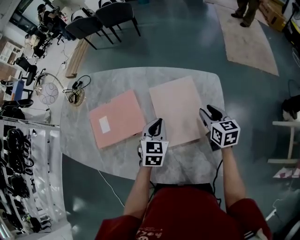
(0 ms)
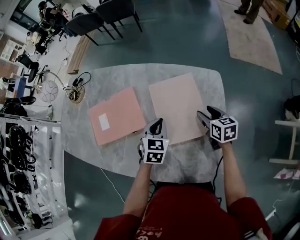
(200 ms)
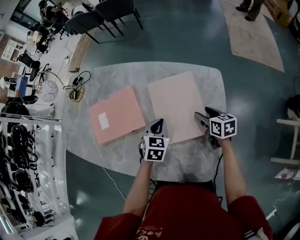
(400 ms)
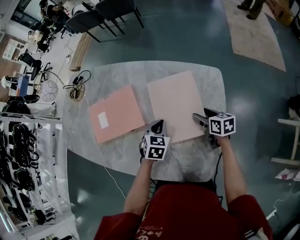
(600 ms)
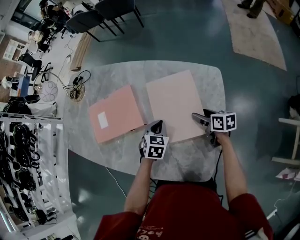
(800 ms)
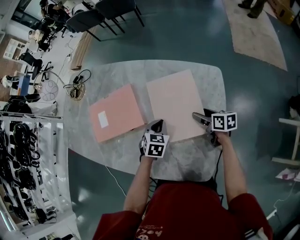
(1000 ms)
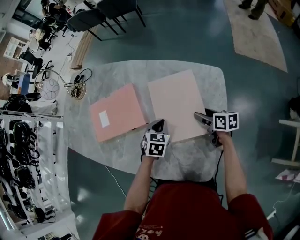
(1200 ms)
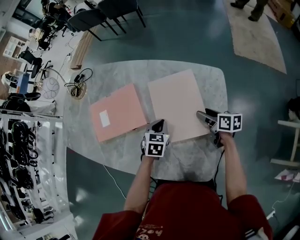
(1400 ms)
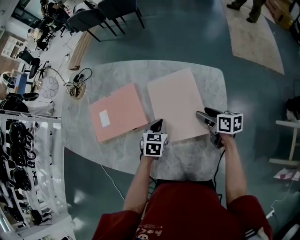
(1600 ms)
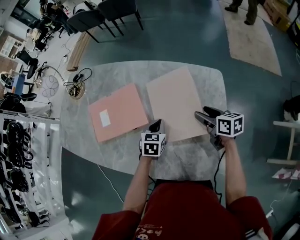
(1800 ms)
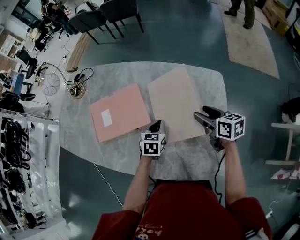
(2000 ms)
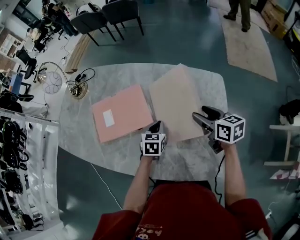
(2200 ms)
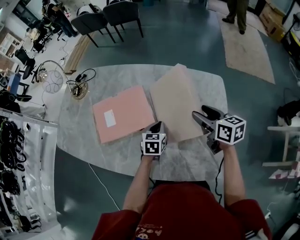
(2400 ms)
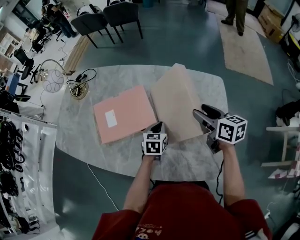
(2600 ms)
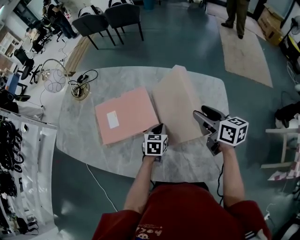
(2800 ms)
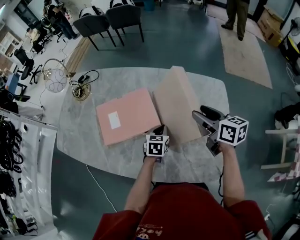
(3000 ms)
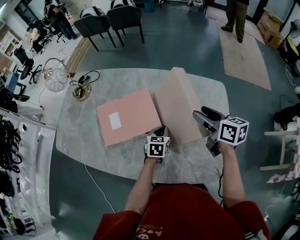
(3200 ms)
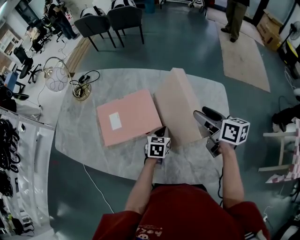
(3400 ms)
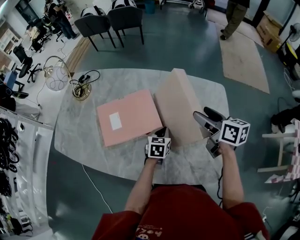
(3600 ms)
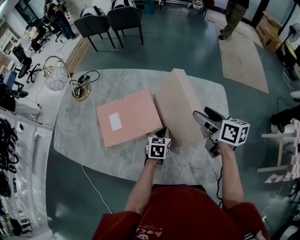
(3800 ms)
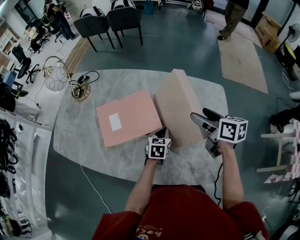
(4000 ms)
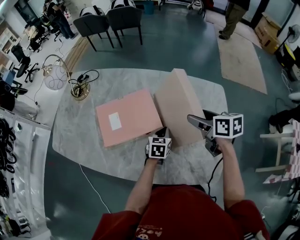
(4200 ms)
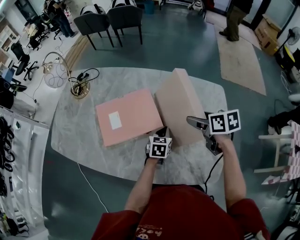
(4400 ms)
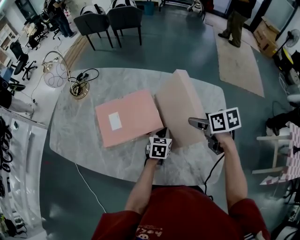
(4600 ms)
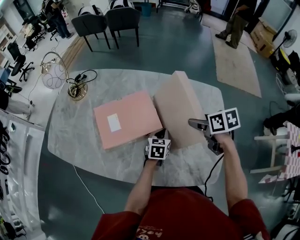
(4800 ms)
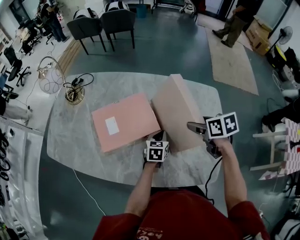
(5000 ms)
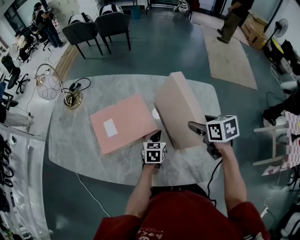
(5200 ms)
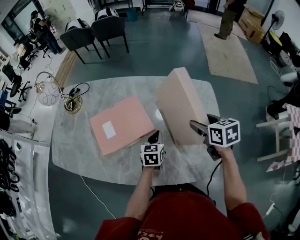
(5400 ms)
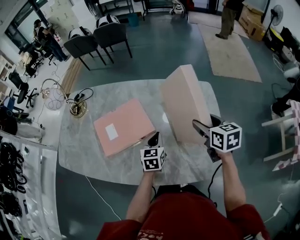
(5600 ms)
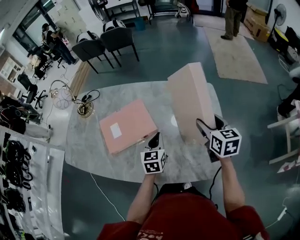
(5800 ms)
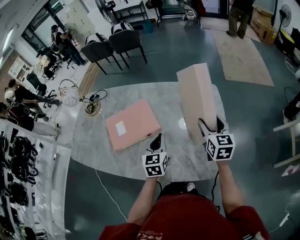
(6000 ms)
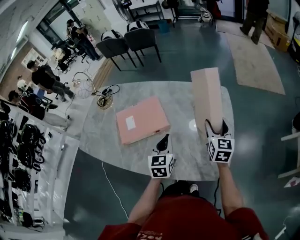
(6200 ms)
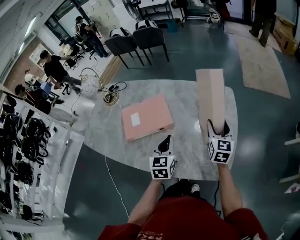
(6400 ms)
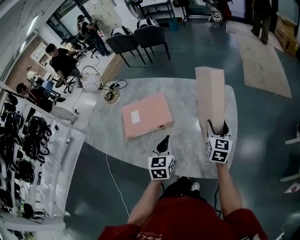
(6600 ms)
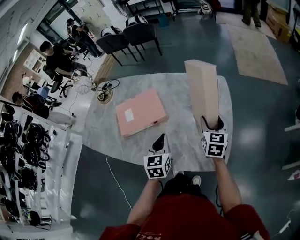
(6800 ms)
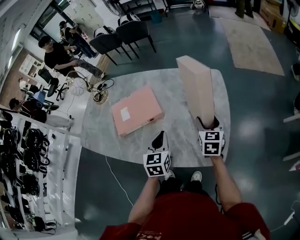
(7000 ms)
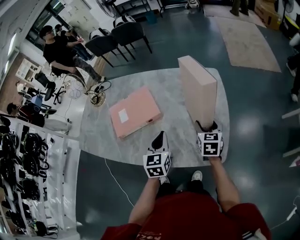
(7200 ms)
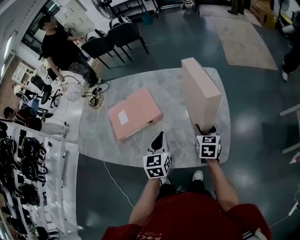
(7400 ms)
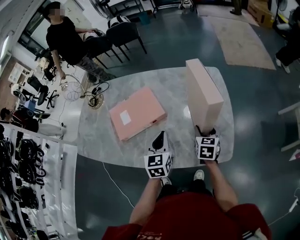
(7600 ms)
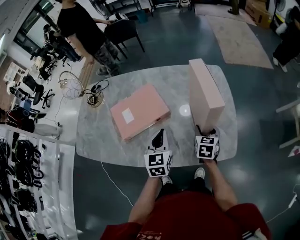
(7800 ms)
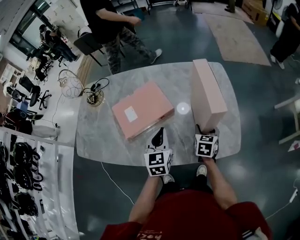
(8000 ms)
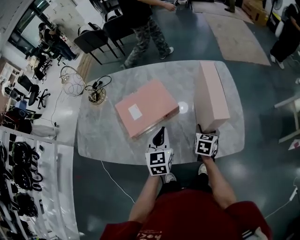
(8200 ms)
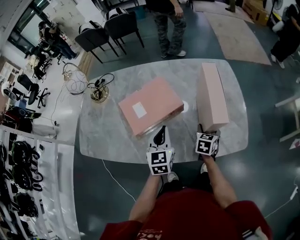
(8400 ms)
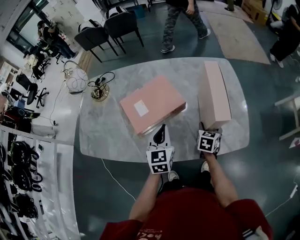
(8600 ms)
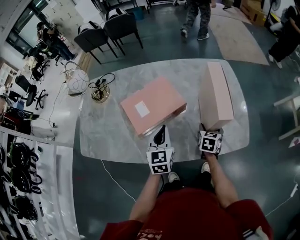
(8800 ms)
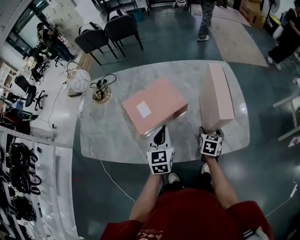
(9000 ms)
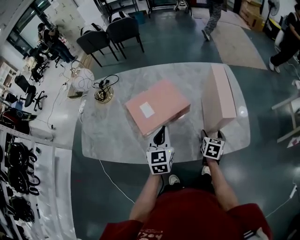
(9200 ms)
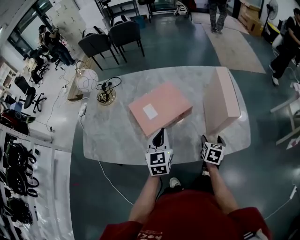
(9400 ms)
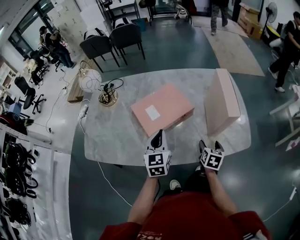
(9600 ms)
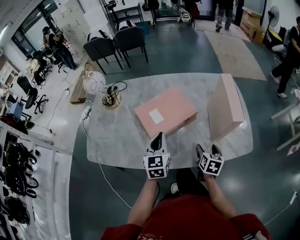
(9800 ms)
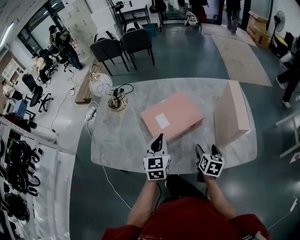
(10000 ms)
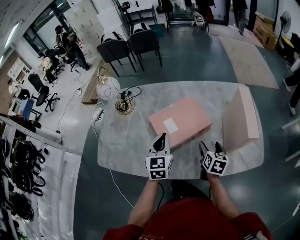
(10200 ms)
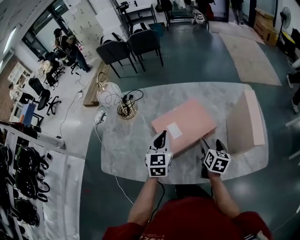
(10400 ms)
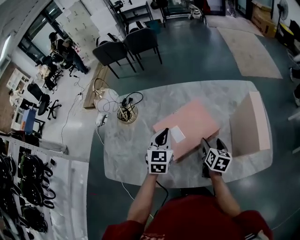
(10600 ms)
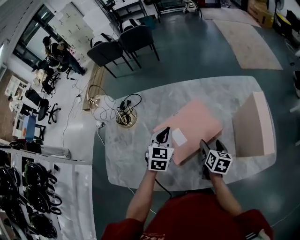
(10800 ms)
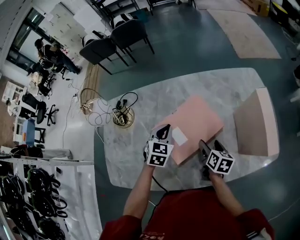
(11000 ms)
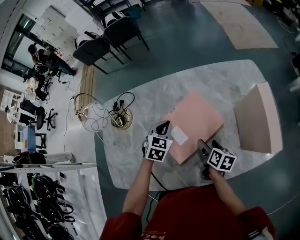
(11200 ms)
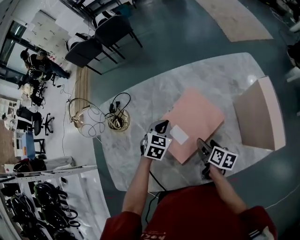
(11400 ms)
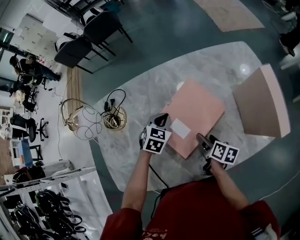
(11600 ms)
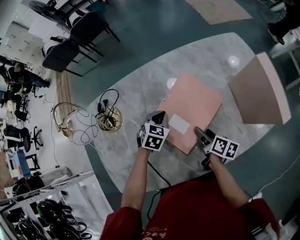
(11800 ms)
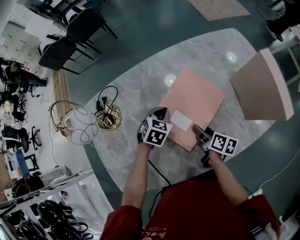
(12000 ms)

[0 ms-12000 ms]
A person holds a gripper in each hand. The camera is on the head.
0 ms to 1600 ms: The left gripper travels downward by about 10 cm, while the right gripper is displaced downward by approximately 5 cm, and turns by approximately 30 degrees.
1600 ms to 3000 ms: The right gripper travels upward and to the left by about 20 cm. The left gripper shifts about 5 cm to the left.
3000 ms to 4400 ms: The right gripper changes place by roughly 5 cm, and changes its angle by approximately 20 degrees.
4400 ms to 6000 ms: The right gripper goes about 15 cm to the right, backward and upward, and swivels roughly 40 degrees, while the left gripper goes about 20 cm upward and backward, and turns by about 20 degrees.
6000 ms to 7600 ms: The left gripper travels backward by approximately 5 cm, while the right gripper moves downward and backward, roughly 15 cm.
7600 ms to 9000 ms: The left gripper shifts approximately 15 cm to the left. The right gripper shifts some 15 cm to the left, backward and downward.
9000 ms to 10400 ms: The left gripper moves to the left, some 15 cm; the right gripper is displaced to the left and upward by roughly 20 cm, and turns by roughly 20 degrees.
10400 ms to 12000 ms: The left gripper travels downward and forward by roughly 25 cm, and angles its fingers downward, by roughly 30 degrees. The right gripper moves to the left and downward, approximately 15 cm, and rolls clockwise, seen from behind, by some 40 degrees.

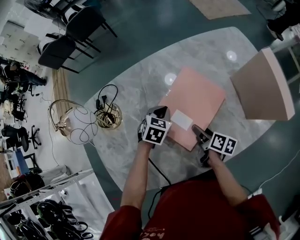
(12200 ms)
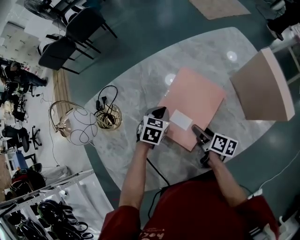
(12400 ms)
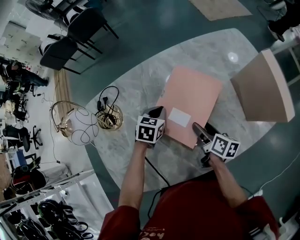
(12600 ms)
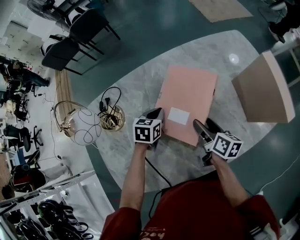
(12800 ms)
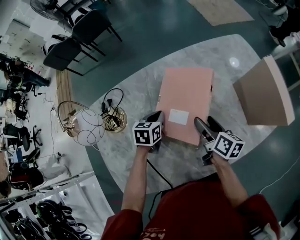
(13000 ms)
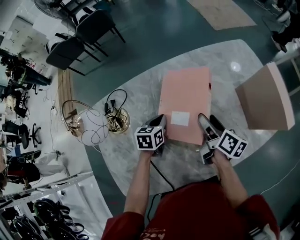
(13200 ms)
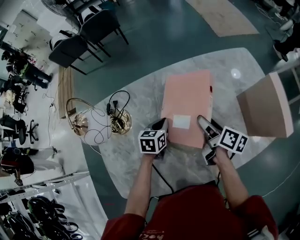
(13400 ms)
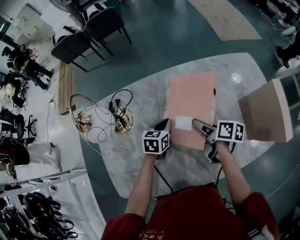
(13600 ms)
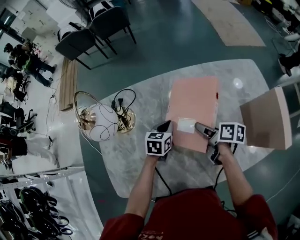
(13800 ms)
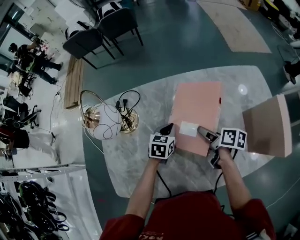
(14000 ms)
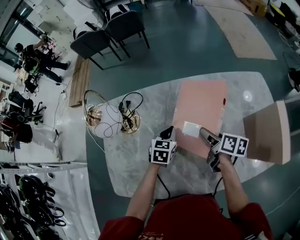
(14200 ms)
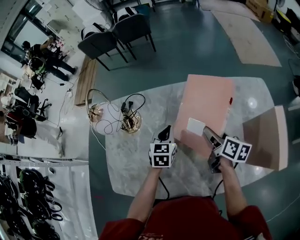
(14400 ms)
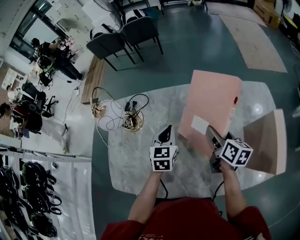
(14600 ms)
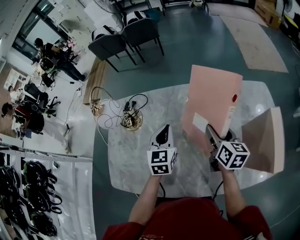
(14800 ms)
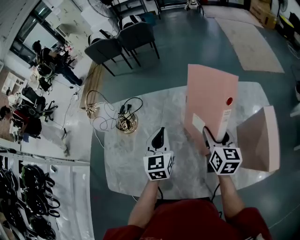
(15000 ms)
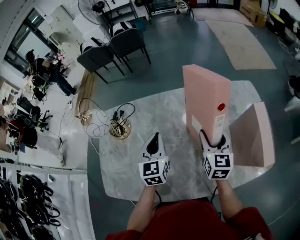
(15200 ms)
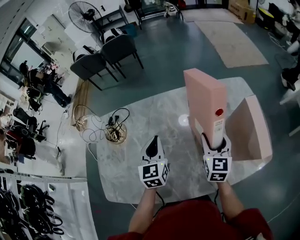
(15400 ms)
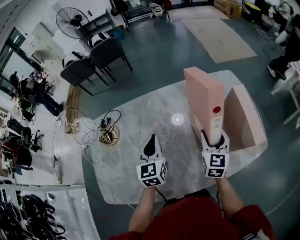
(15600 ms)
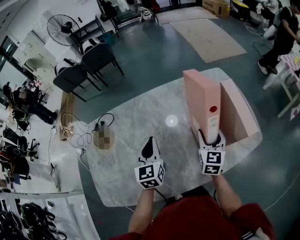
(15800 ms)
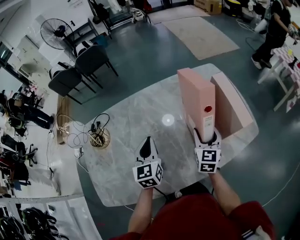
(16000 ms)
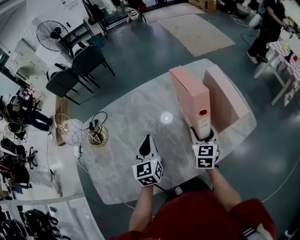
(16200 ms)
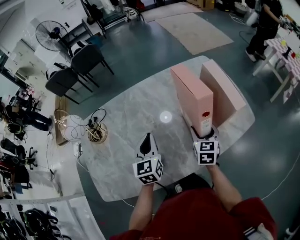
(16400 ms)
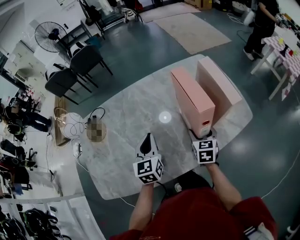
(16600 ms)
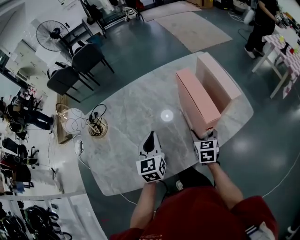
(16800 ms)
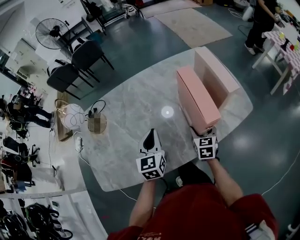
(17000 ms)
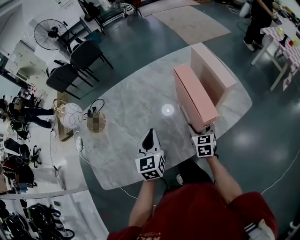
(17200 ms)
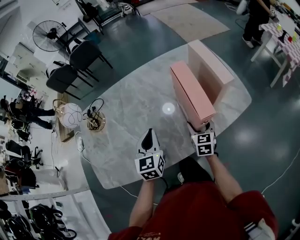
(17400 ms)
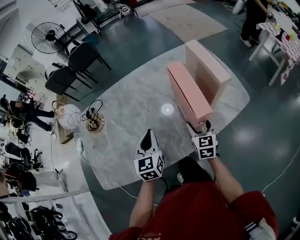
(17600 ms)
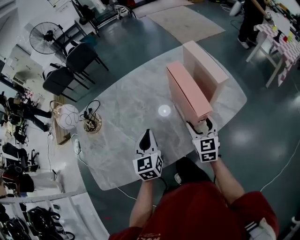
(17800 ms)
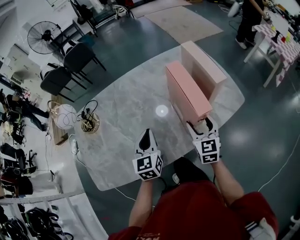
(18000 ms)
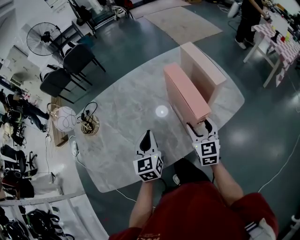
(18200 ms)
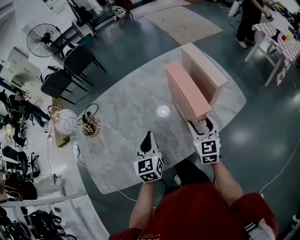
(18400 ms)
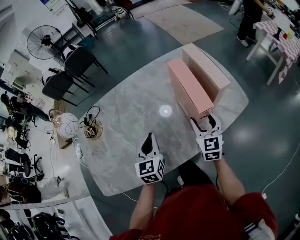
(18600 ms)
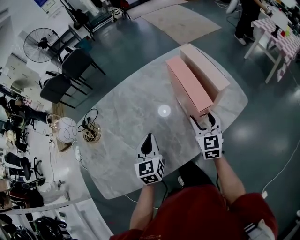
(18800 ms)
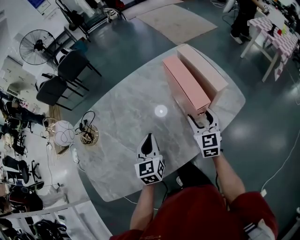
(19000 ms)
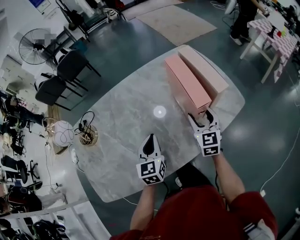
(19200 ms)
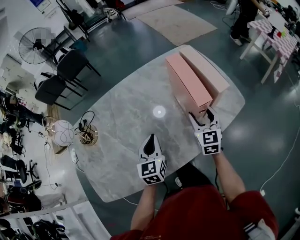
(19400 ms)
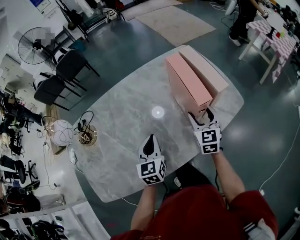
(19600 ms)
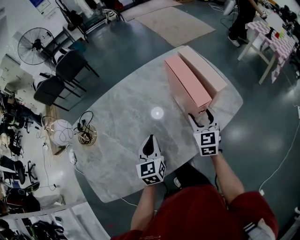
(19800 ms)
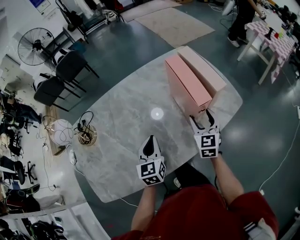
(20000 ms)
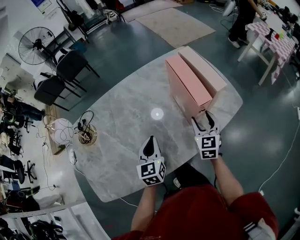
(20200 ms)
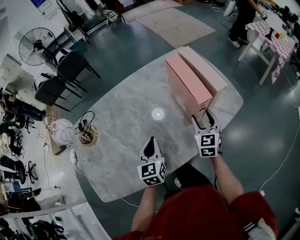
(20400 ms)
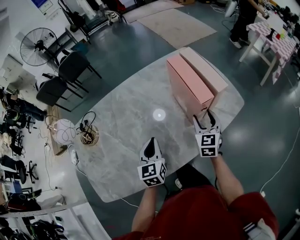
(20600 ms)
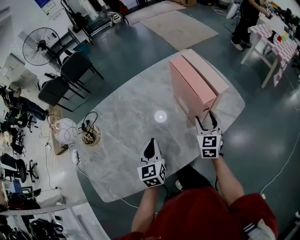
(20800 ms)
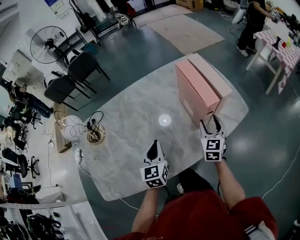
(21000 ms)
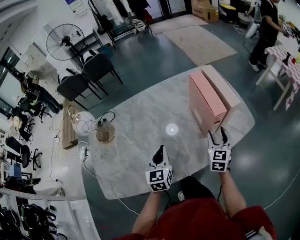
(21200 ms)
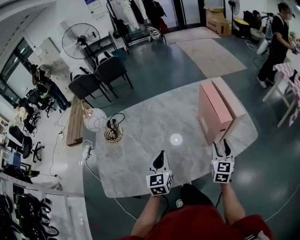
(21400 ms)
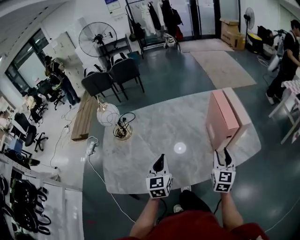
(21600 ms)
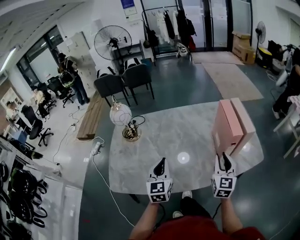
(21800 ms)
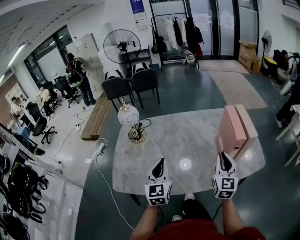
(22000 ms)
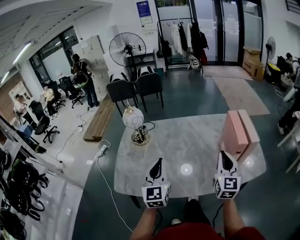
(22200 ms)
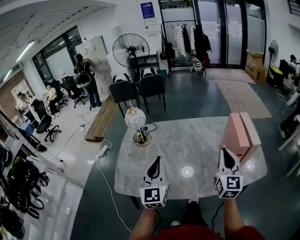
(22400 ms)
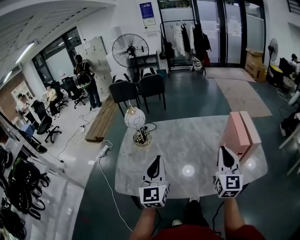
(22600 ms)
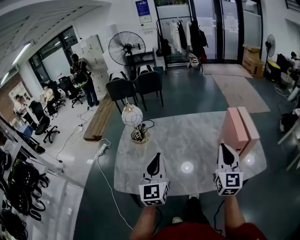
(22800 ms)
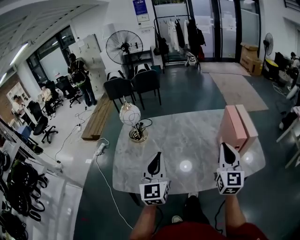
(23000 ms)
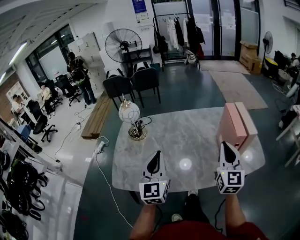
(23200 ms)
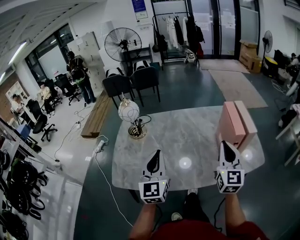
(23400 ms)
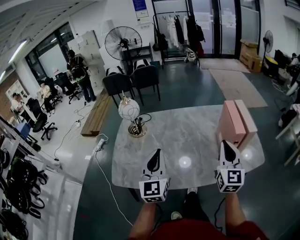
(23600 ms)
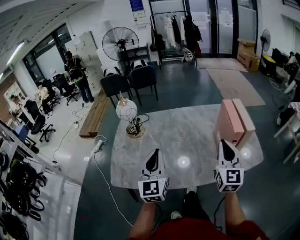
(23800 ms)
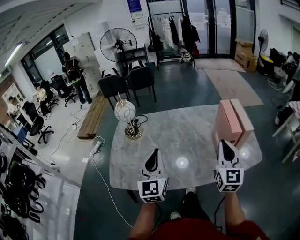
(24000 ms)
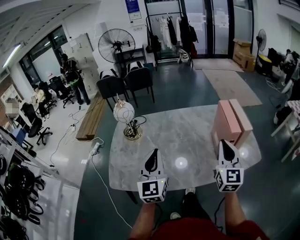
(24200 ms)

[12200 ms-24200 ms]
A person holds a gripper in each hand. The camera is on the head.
12200 ms to 13800 ms: The right gripper is displaced upward, forward and to the left by about 15 cm, and rotates roughly 20 degrees. Meanwhile the left gripper travels to the left by approximately 5 cm, and changes its angle by roughly 30 degrees.
13800 ms to 15200 ms: The left gripper shifts some 15 cm upward, and swivels roughly 40 degrees. The right gripper travels to the right and upward by some 15 cm, and turns by roughly 60 degrees.
15200 ms to 16600 ms: The right gripper goes about 20 cm backward, to the right and downward, and swivels approximately 20 degrees. The left gripper goes approximately 15 cm backward and to the right.
16600 ms to 18200 ms: The right gripper goes some 10 cm backward and upward. Meanwhile the left gripper shifts about 5 cm backward.
18200 ms to 19800 ms: The right gripper shifts approximately 5 cm forward.
19800 ms to 21200 ms: The grippers stay close to where they were, moving slightly.
21200 ms to 22600 ms: The right gripper shifts about 25 cm upward and to the left, changes its angle by about 40 degrees, and closes, while the left gripper is displaced upward, to the left and backward by roughly 25 cm, and swivels approximately 30 degrees.
22600 ms to 24200 ms: The grippers make only small movements.
